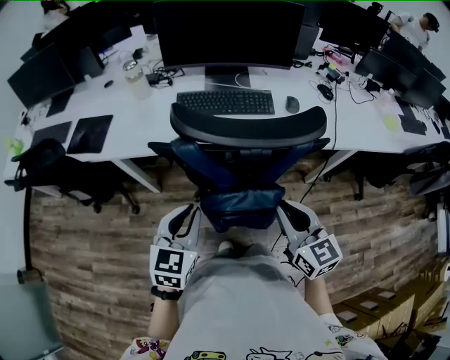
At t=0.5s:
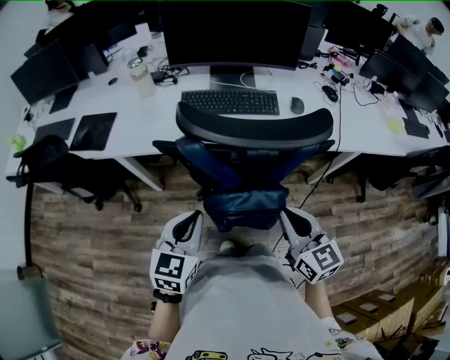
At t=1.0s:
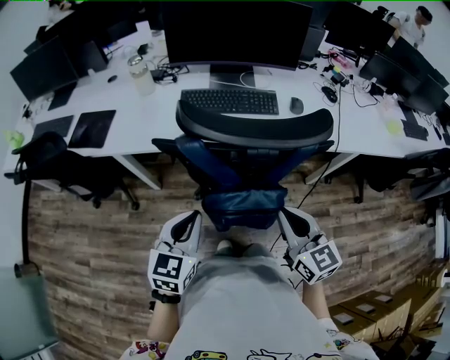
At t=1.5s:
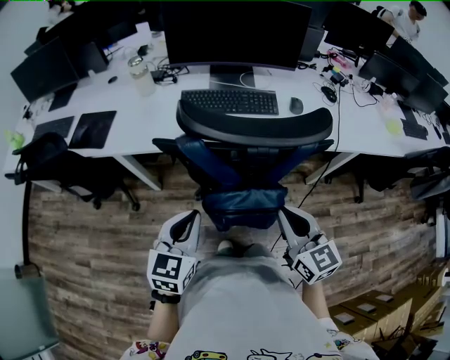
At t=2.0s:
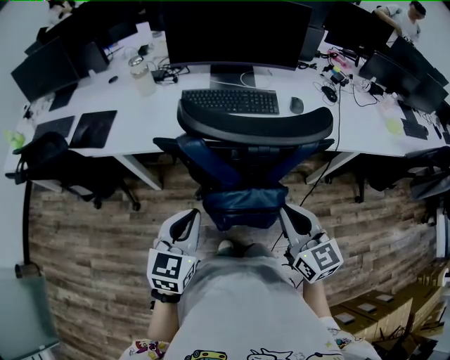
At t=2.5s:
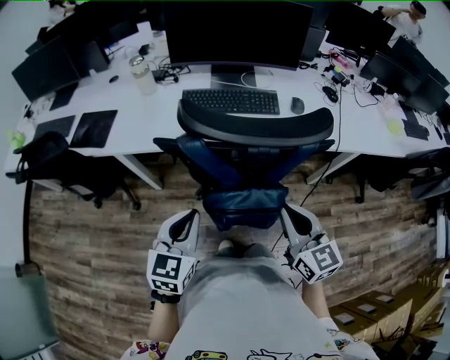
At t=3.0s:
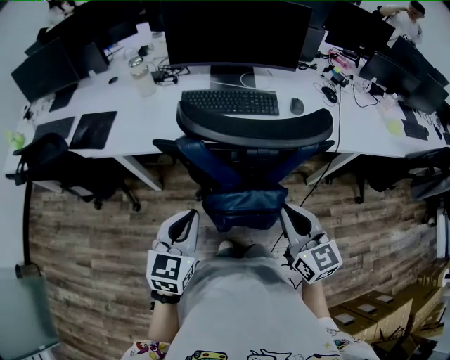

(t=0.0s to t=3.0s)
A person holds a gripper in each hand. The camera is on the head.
t=0.0s - t=1.5s: The grippers move only a little.
t=1.5s - t=3.0s: The two grippers keep their place.

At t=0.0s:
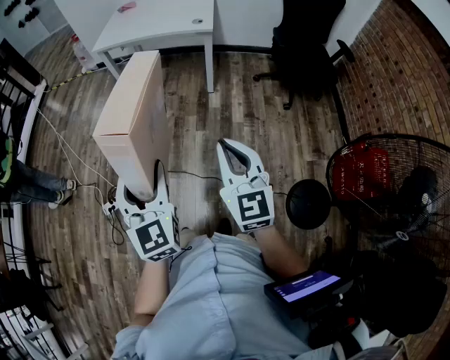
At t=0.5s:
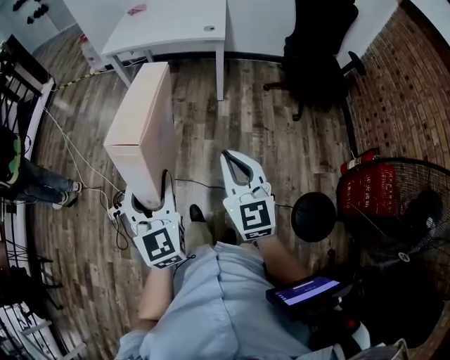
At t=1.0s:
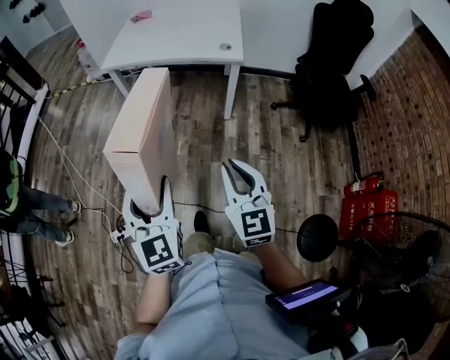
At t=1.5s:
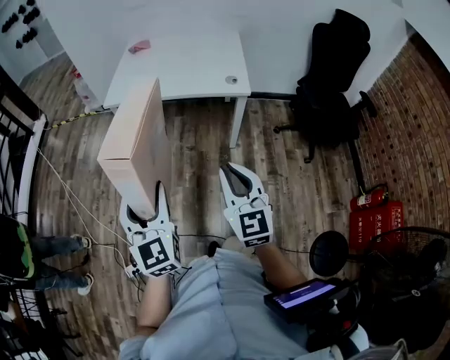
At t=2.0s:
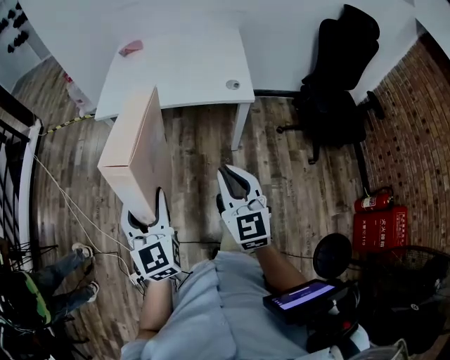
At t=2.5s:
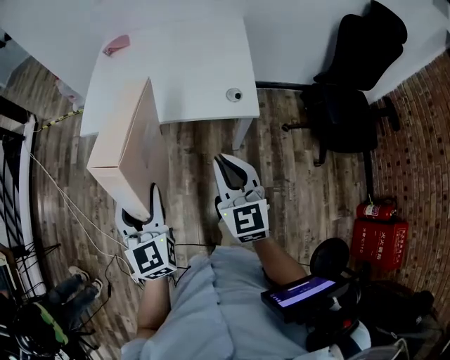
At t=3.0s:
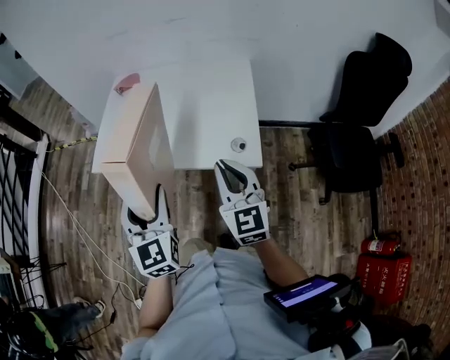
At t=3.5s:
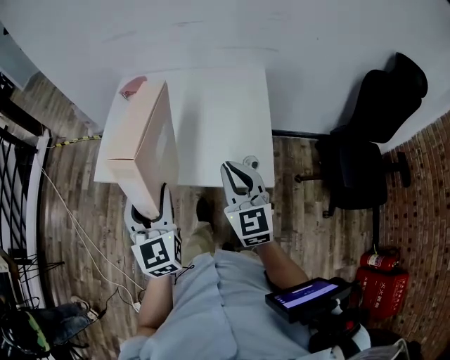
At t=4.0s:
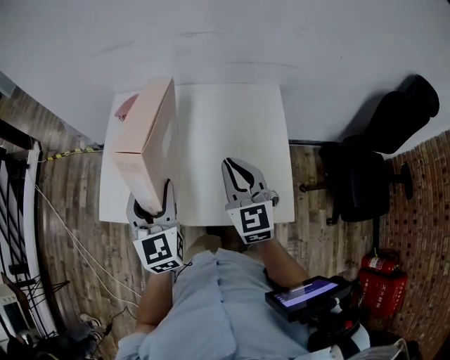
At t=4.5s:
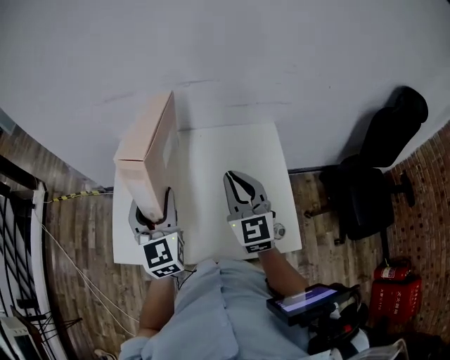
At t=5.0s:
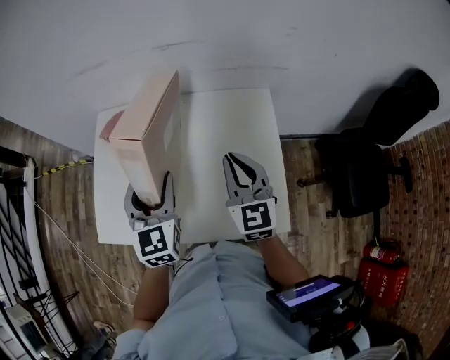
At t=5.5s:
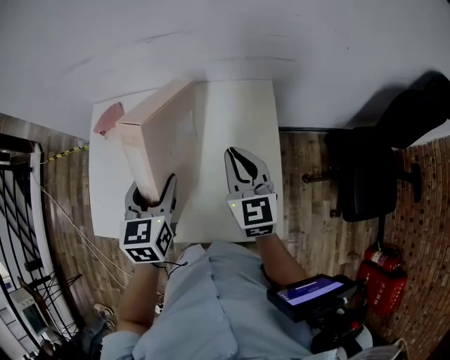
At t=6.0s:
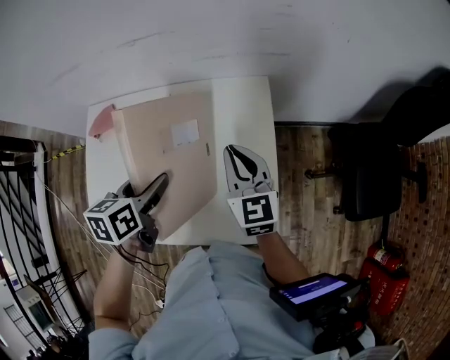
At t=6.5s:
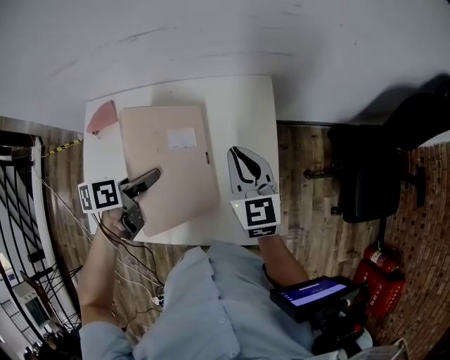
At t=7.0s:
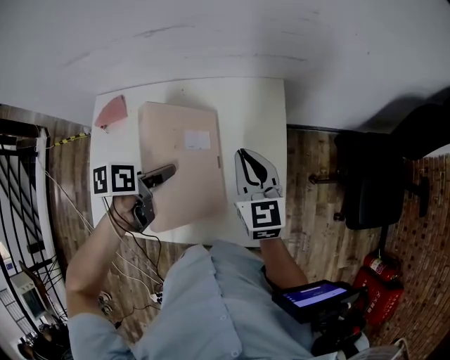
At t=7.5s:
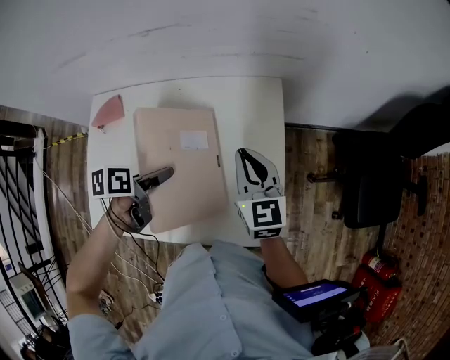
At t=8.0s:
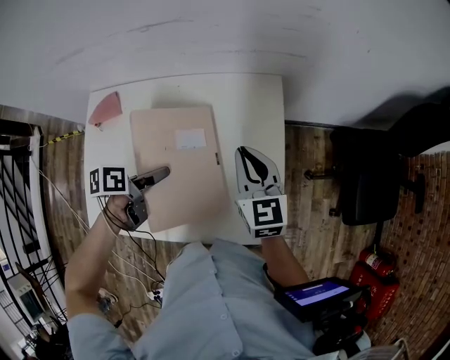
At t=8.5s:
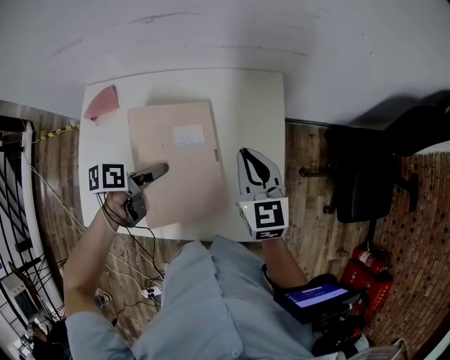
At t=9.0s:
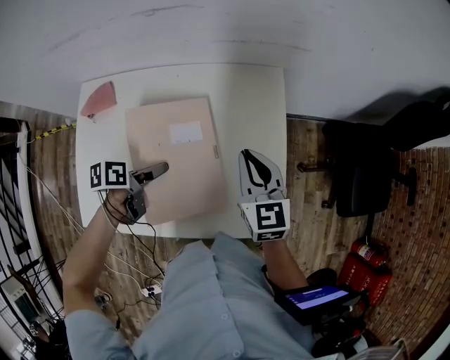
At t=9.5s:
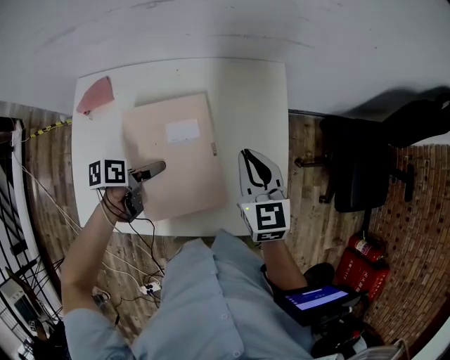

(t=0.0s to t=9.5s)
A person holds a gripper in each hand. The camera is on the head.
t=0.0s - t=2.0s: Both grippers are carried forward, roughly 50 cm.
t=2.0s - t=4.0s: Both grippers are carried forward, roughly 60 cm.
t=4.0s - t=5.5s: The left gripper travels to the right, forward and downward by roughly 20 cm, and turns by about 30 degrees, while the right gripper heads to the right and forward, covering roughly 20 cm.
t=5.5s - t=7.5s: The left gripper travels downward by some 10 cm, and rotates roughly 50 degrees.
t=7.5s - t=9.5s: The left gripper moves downward and to the left, approximately 10 cm.

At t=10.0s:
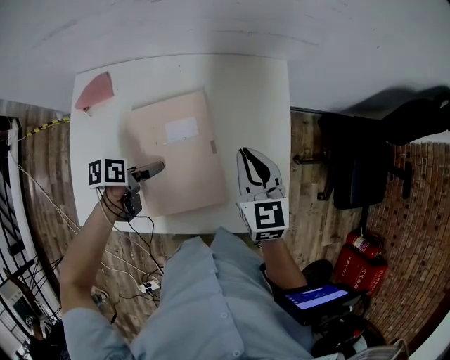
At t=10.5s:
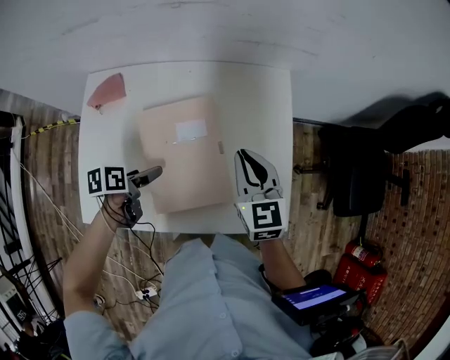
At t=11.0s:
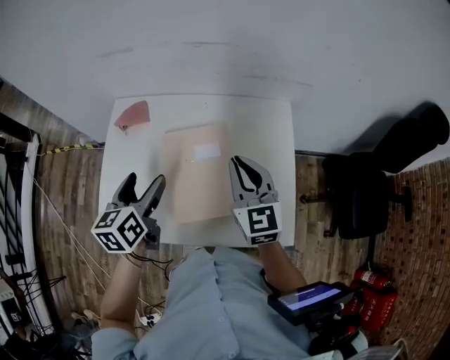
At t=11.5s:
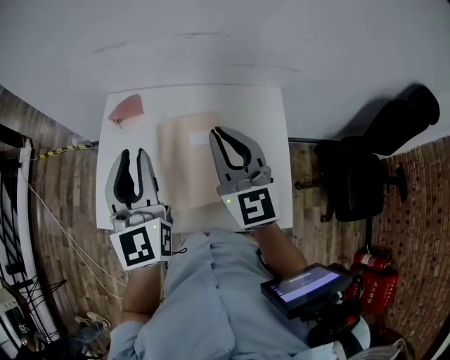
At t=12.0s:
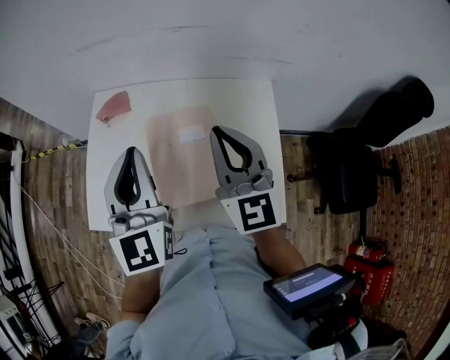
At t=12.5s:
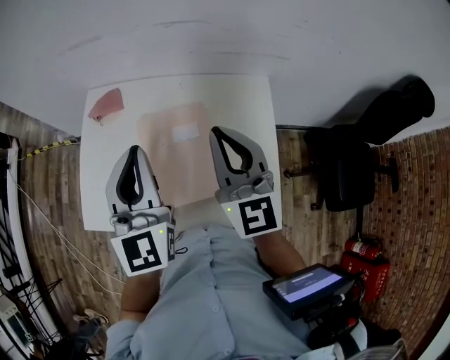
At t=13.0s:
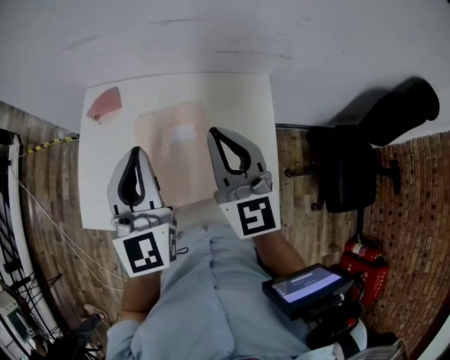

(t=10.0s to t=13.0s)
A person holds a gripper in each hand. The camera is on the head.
t=10.0s - t=11.5s: The left gripper heads upward, covering about 35 cm, tilts its fingers about 50 degrees upward, and closes up; the right gripper shifts roughly 20 cm upward, and changes its angle by approximately 30 degrees.
t=11.5s - t=13.0s: Both grippers move to the right, approximately 5 cm.

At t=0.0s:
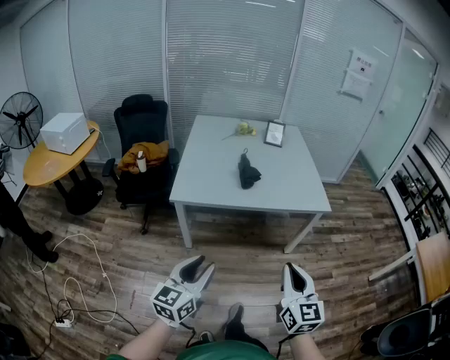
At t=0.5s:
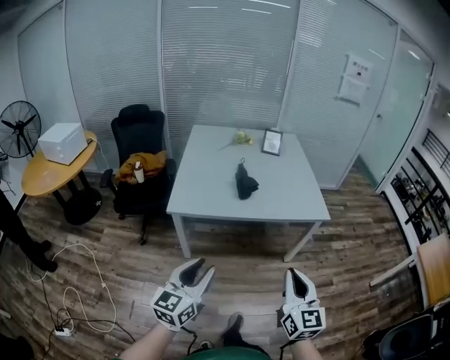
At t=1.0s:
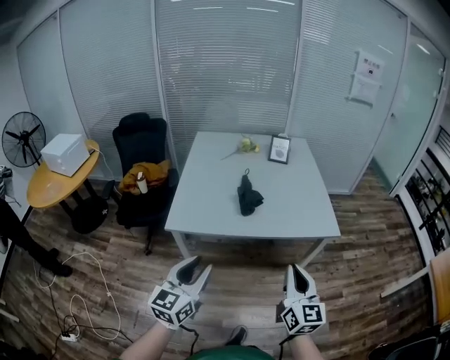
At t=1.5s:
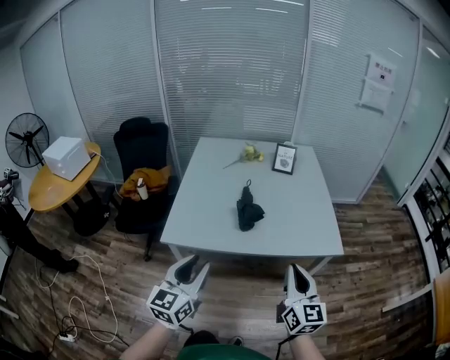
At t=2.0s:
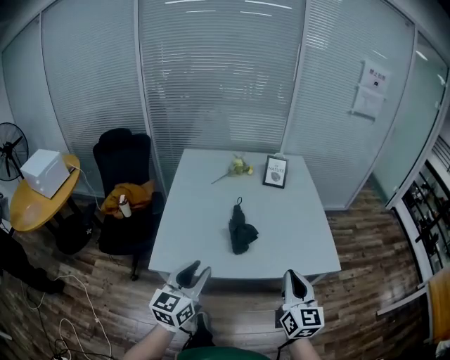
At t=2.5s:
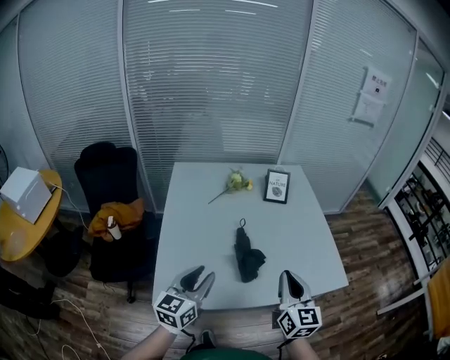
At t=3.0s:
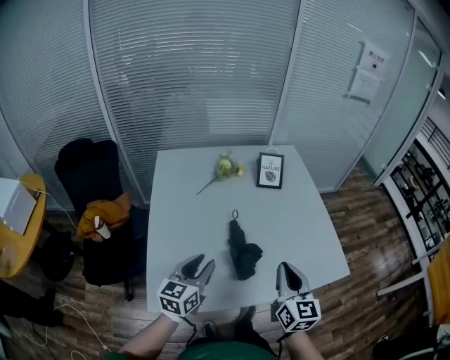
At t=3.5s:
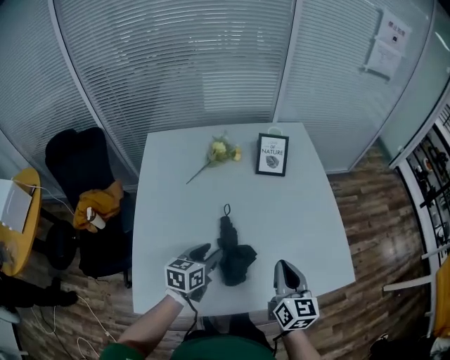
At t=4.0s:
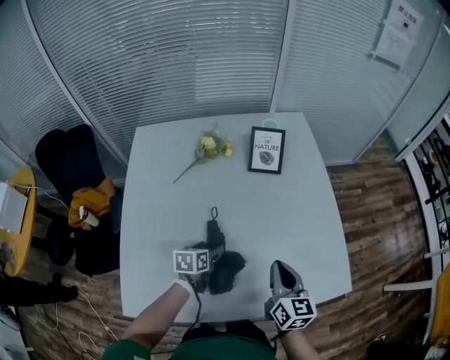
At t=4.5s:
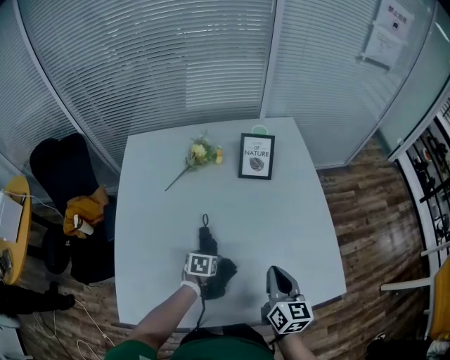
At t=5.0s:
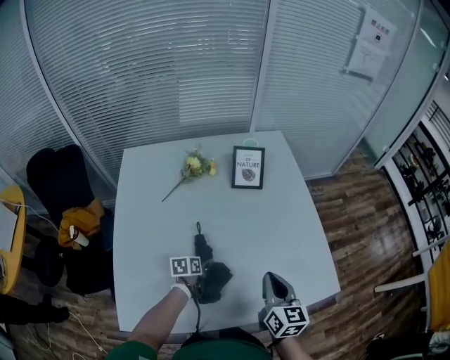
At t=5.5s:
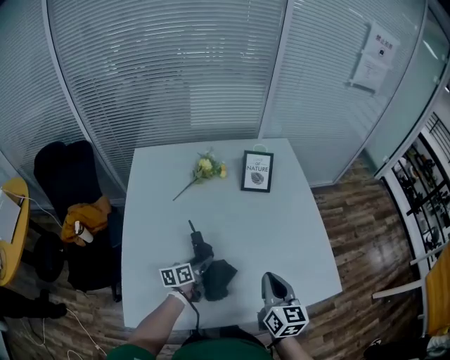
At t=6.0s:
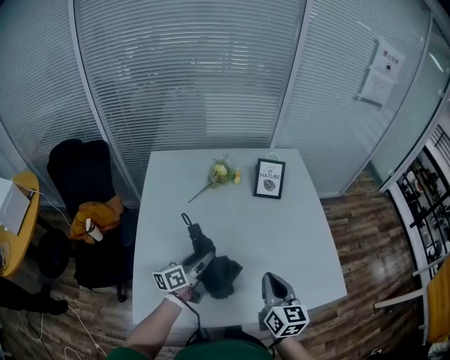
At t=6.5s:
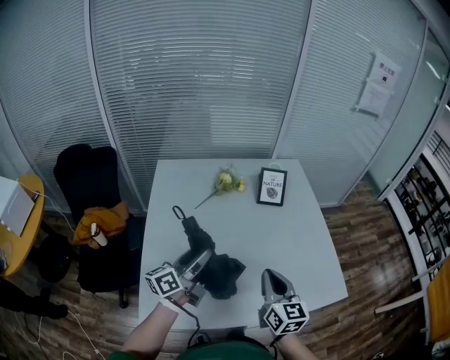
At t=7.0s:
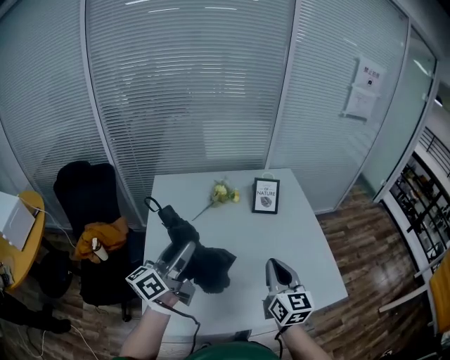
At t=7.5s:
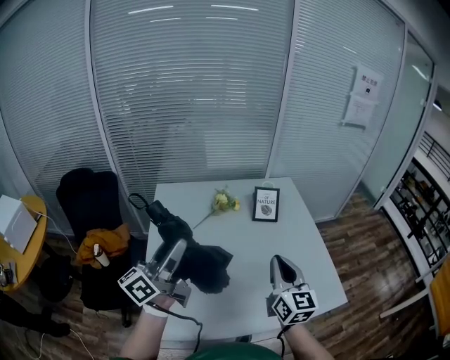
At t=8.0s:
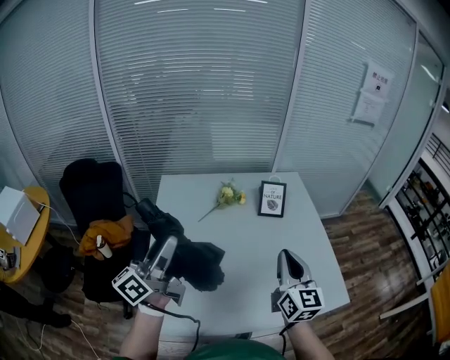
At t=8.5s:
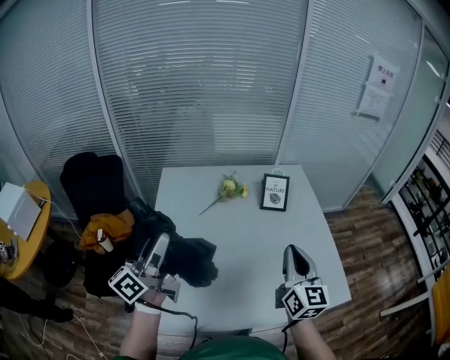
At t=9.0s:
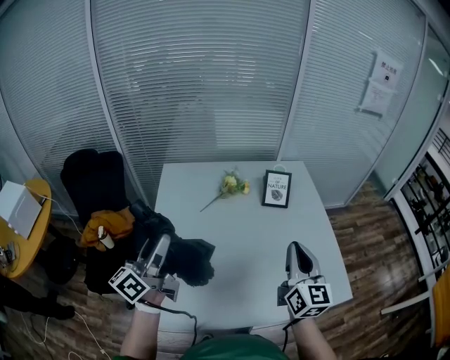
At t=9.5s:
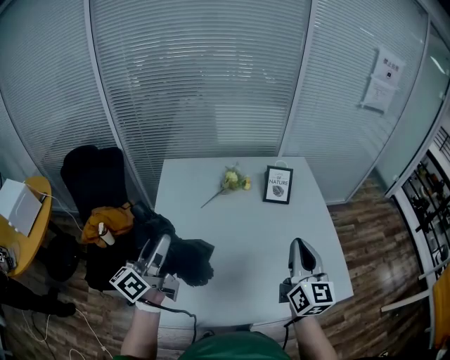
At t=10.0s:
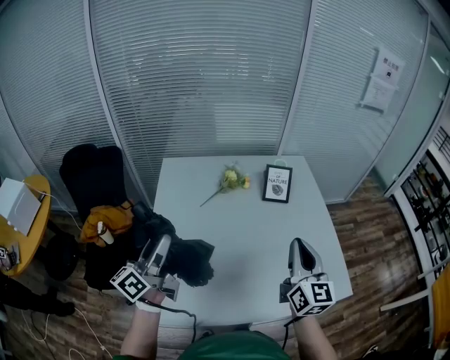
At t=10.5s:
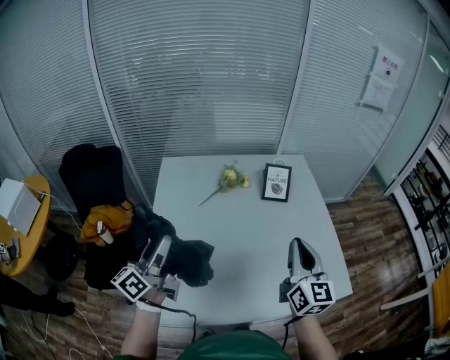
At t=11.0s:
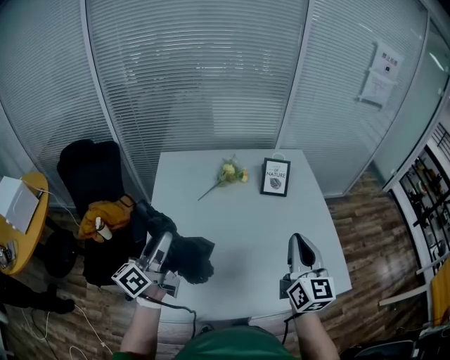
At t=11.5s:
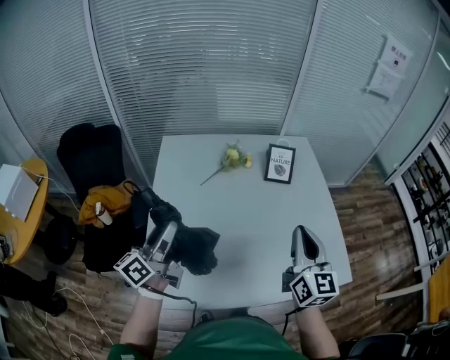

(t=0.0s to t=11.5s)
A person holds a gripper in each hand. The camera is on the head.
t=0.0s - t=2.0s: Both grippers travel together forward, roughly 35 cm.
t=2.0s - t=4.0s: The grippers both shift forward and downward by roughly 50 cm. The right gripper rotates roughly 20 degrees, while the left gripper points its fingers about 40 degrees further downward, and opens its fingers.
t=4.0s - t=6.0s: The left gripper heads upward, to the left and backward, covering roughly 15 cm, and tips its fingers upward by about 40 degrees. Meanwhile the right gripper shifts some 15 cm backward, to the left and upward.
t=6.0s - t=7.5s: The left gripper moves upward, approximately 30 cm, and changes its angle by approximately 30 degrees; the right gripper shifts some 15 cm upward.
t=7.5s - t=9.5s: The left gripper moves downward and to the left, some 10 cm.
t=9.5s - t=11.5s: The grippers stay close to where they were, moving slightly.
